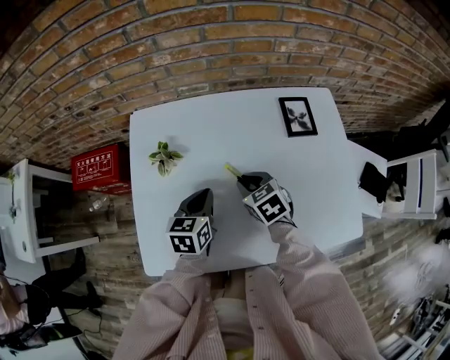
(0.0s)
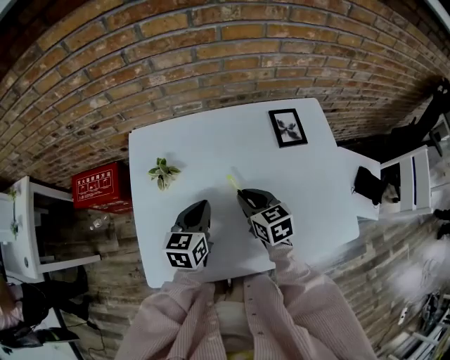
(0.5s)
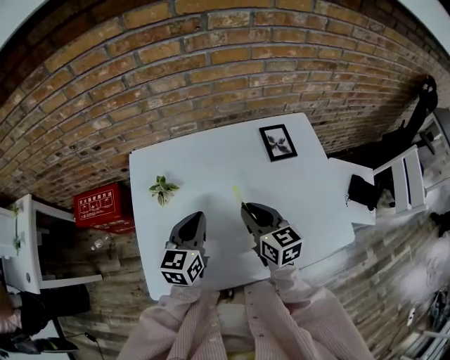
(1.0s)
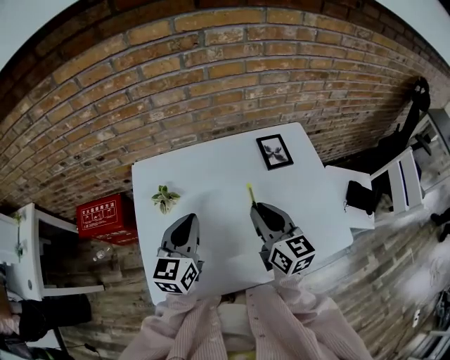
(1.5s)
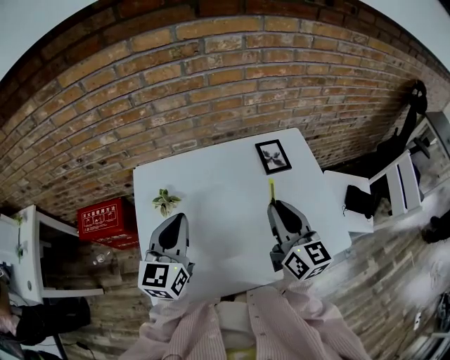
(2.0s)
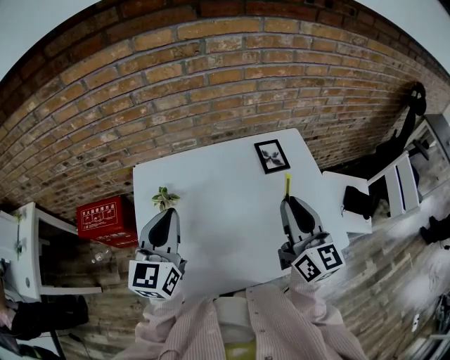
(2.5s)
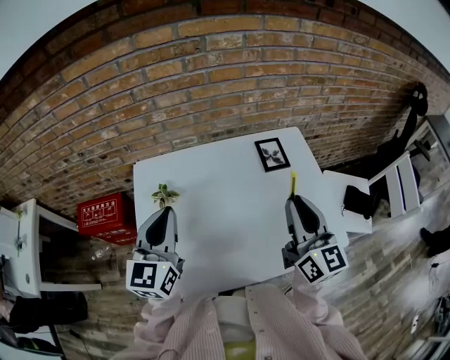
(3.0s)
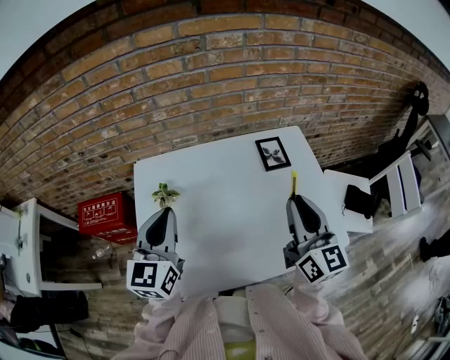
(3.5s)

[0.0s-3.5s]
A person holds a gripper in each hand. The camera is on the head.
0.0s to 2.0s: The right gripper shifts about 25 cm upward and to the right, and tilts its fingers some 50 degrees upward. The left gripper goes about 20 cm upward, and turns by approximately 30 degrees.
2.0s to 3.5s: The right gripper shifts by approximately 5 cm.

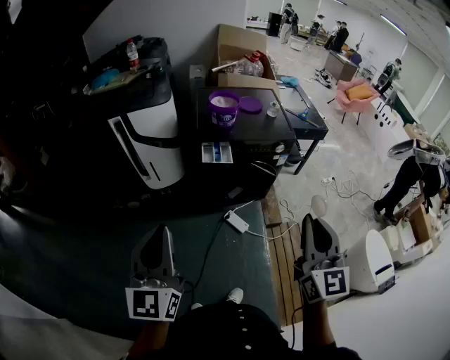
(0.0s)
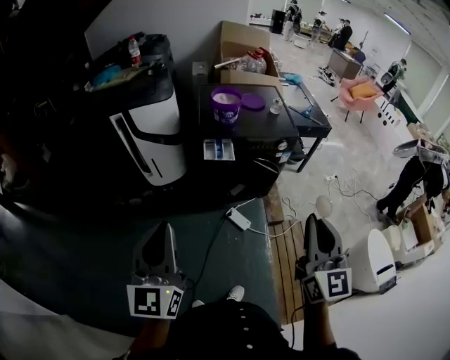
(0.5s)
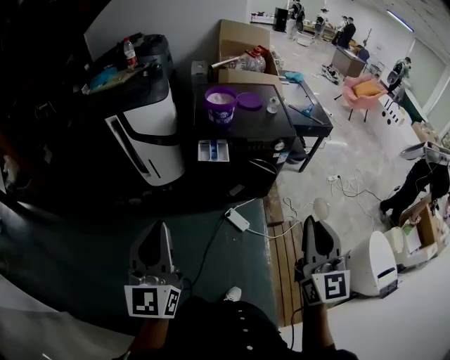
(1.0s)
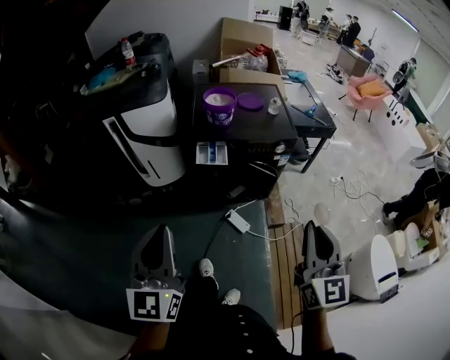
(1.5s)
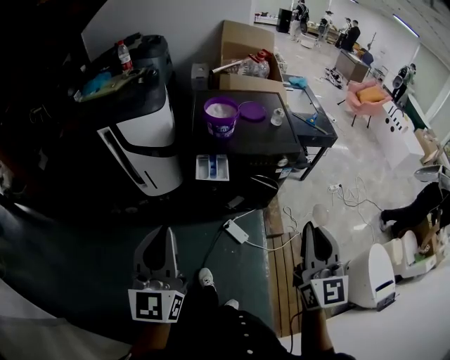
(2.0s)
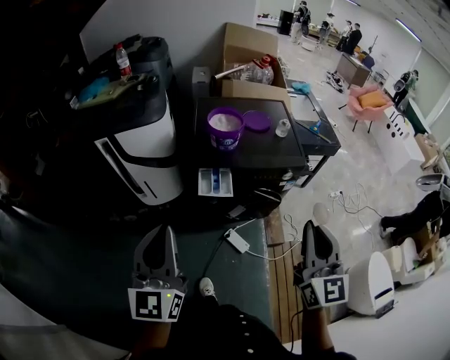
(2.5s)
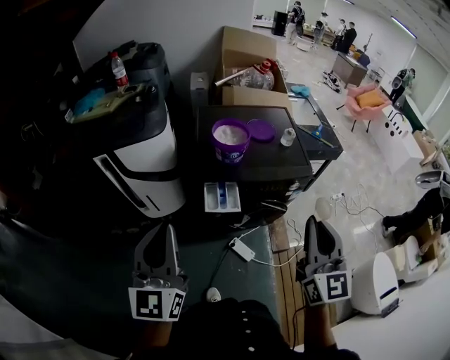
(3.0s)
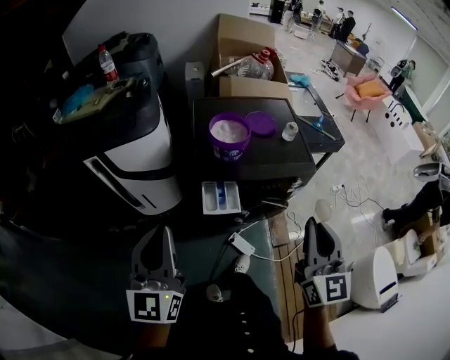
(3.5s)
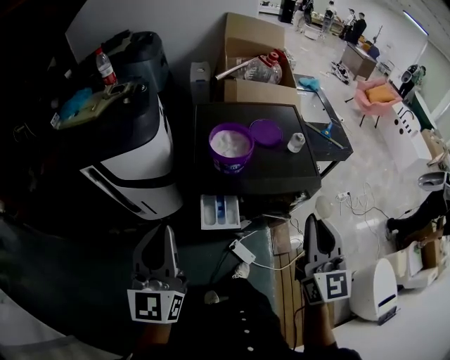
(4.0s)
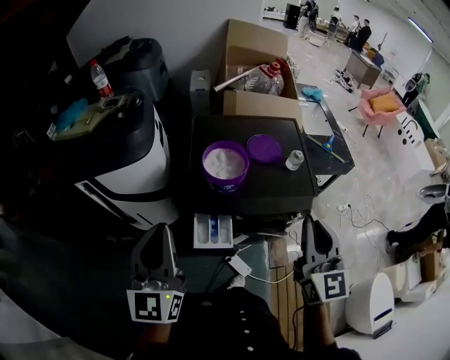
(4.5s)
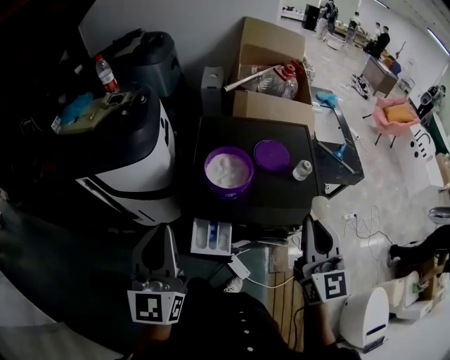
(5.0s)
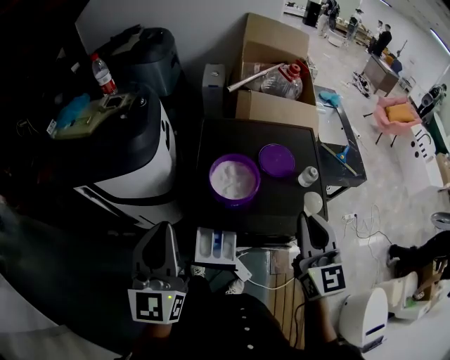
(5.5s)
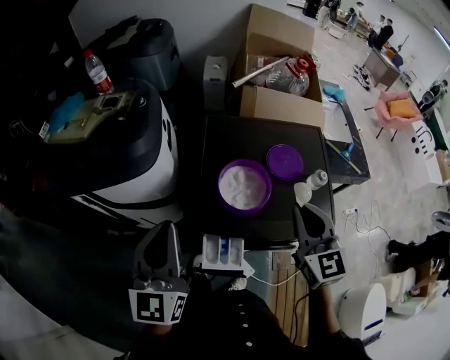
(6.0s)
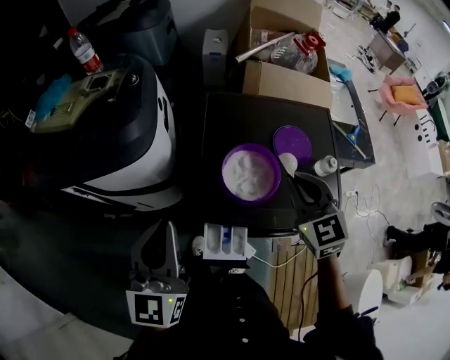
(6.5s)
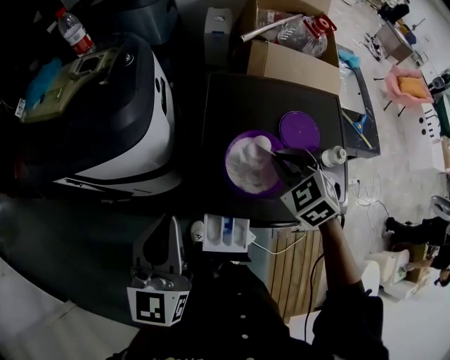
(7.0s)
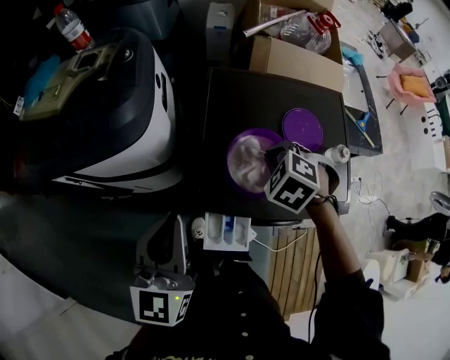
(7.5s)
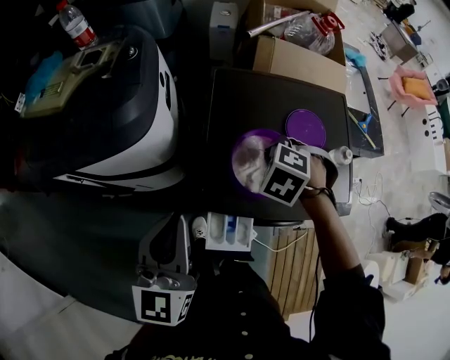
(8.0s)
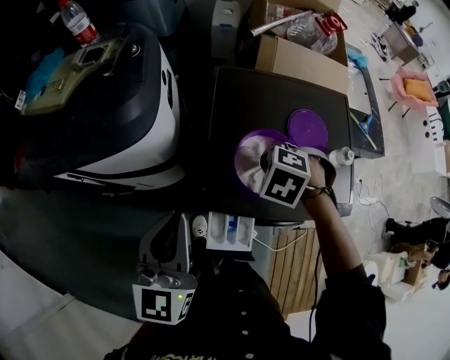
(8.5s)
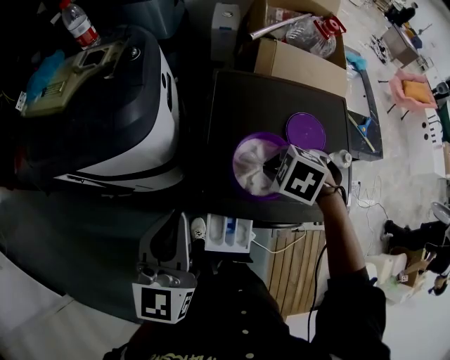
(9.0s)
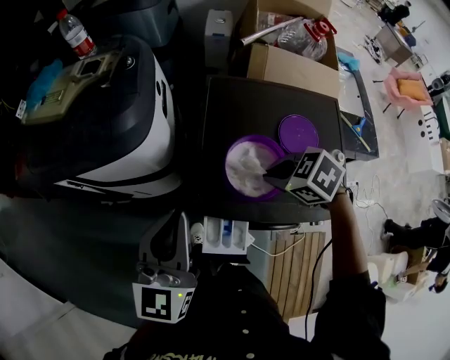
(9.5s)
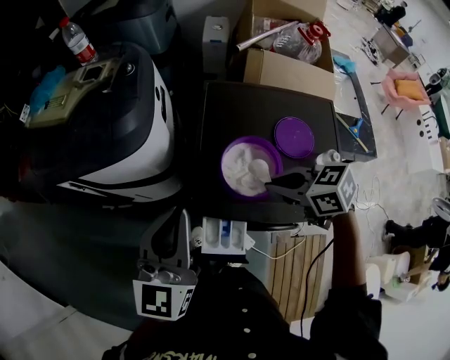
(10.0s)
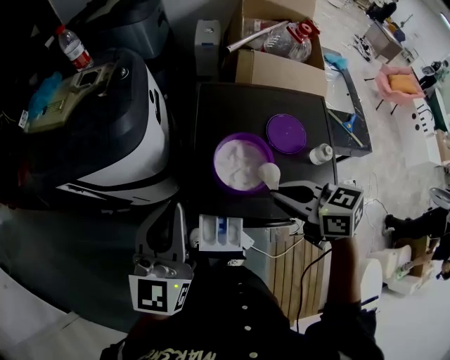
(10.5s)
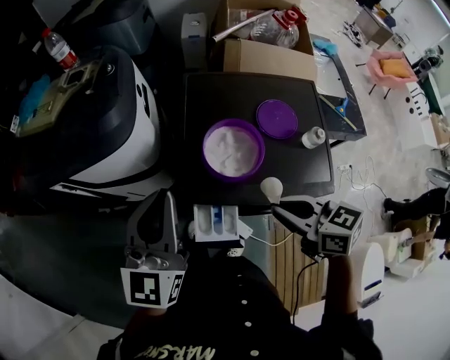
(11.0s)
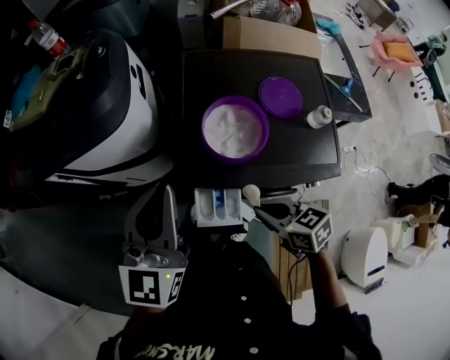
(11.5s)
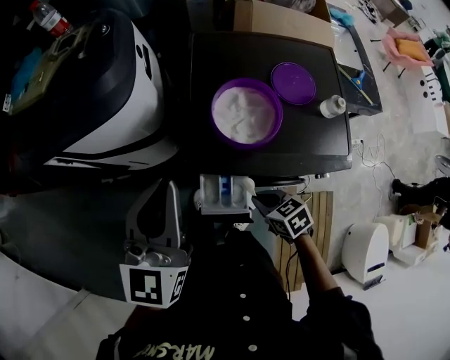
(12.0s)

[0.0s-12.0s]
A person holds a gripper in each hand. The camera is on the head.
0.0s to 2.0s: The right gripper shifts approximately 10 cm forward; the left gripper travels forward and to the right by about 15 cm.
2.0s to 4.0s: The grippers both shift forward by roughly 25 cm.
4.0s to 6.0s: Both grippers travel together forward, some 20 cm. The right gripper changes its angle by approximately 20 degrees.
6.0s to 8.0s: The right gripper goes about 25 cm downward, forward and to the left, and angles its fingers downward, by about 60 degrees. The left gripper travels downward by some 5 cm.
8.0s to 10.0s: The right gripper moves upward, about 5 cm, and points its fingers some 30 degrees further upward.
10.0s to 12.0s: The right gripper heads downward and backward, covering about 25 cm, and swivels roughly 20 degrees.

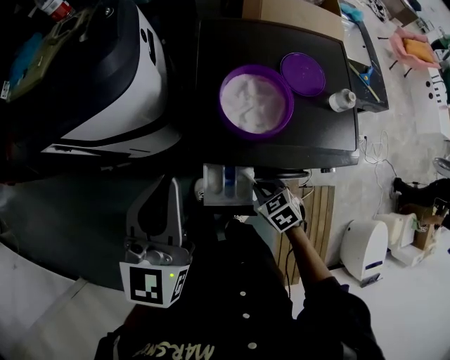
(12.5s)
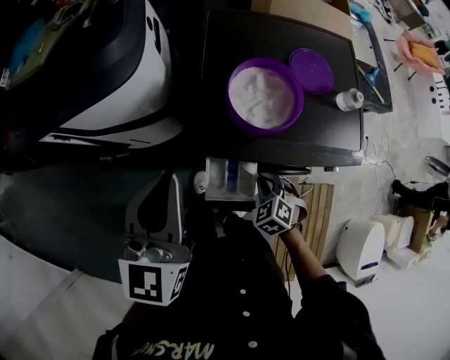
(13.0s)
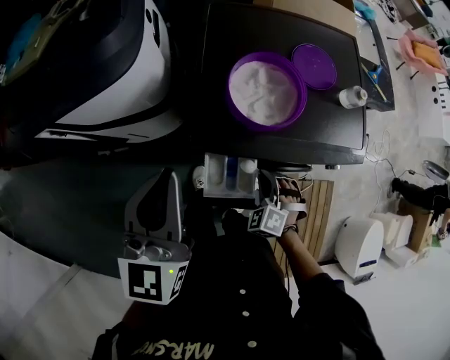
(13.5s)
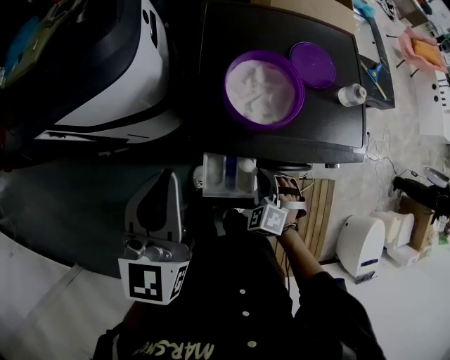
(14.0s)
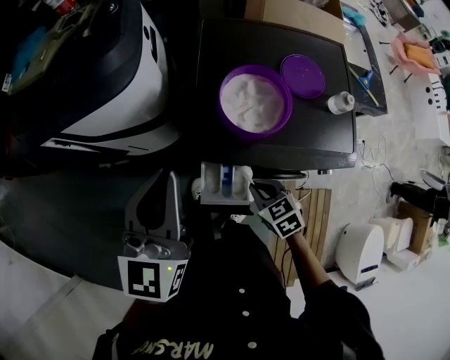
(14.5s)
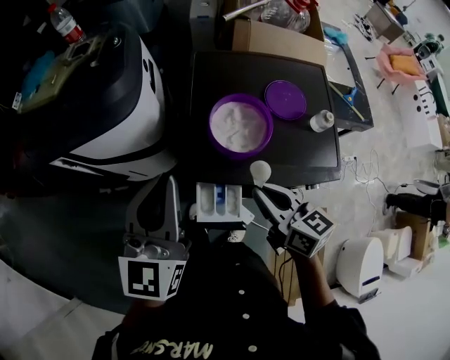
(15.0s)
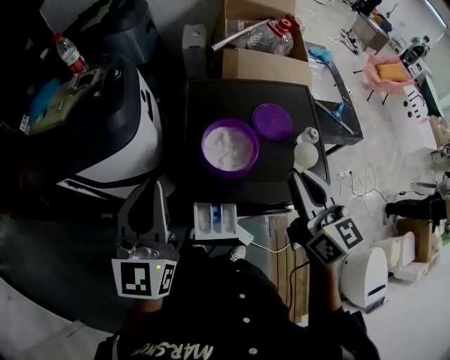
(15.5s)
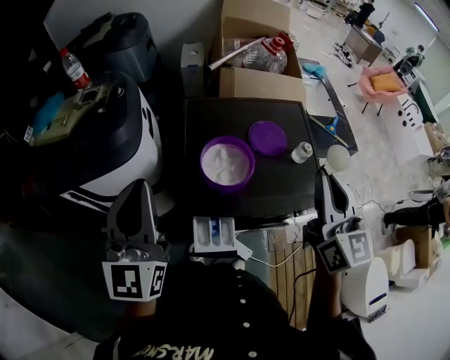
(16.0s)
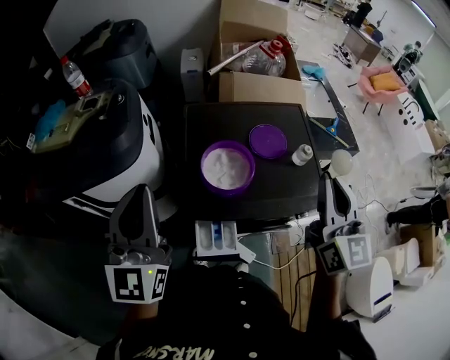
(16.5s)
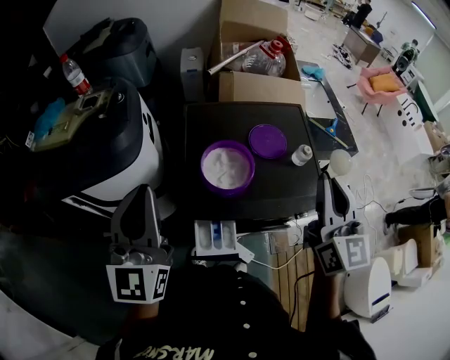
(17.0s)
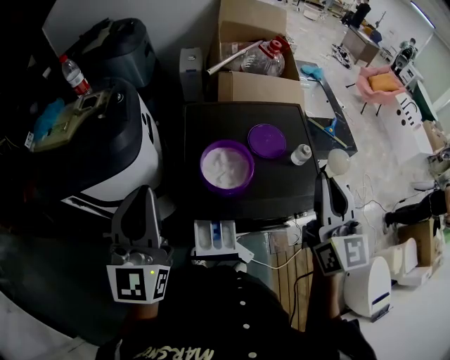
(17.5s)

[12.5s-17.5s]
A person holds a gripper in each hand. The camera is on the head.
12.5s to 15.0s: The right gripper heads upward, covering approximately 20 cm, and tilts its fingers approximately 40 degrees upward.
15.0s to 17.5s: The left gripper is displaced upward by roughly 5 cm. The right gripper moves upward and to the right, some 25 cm, and rotates approximately 50 degrees.

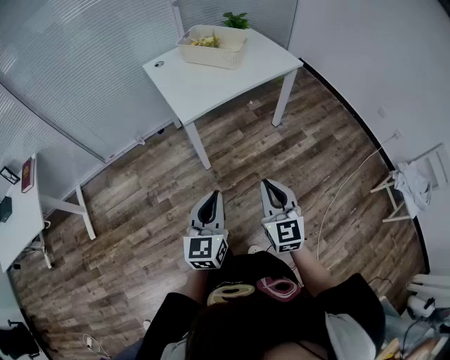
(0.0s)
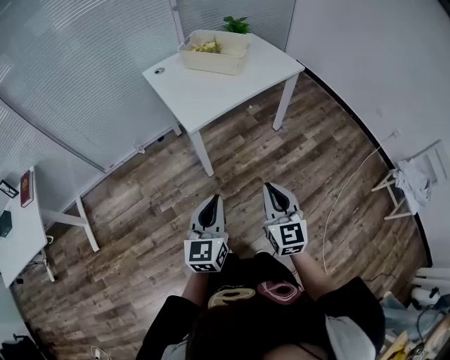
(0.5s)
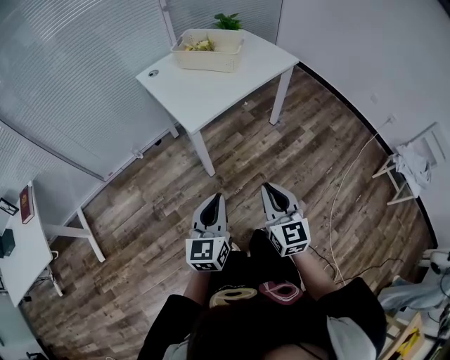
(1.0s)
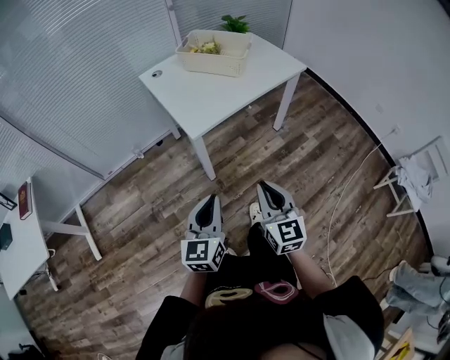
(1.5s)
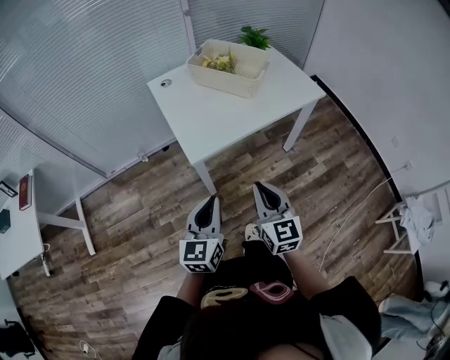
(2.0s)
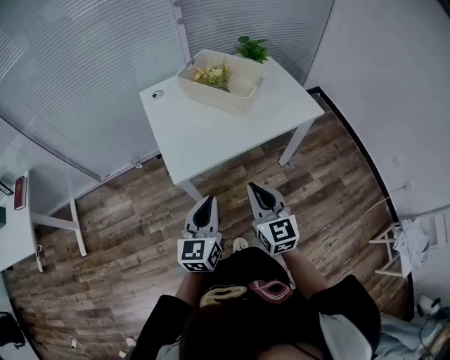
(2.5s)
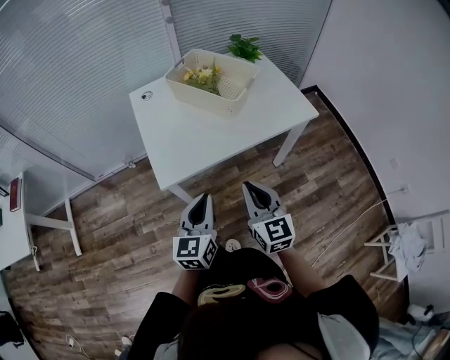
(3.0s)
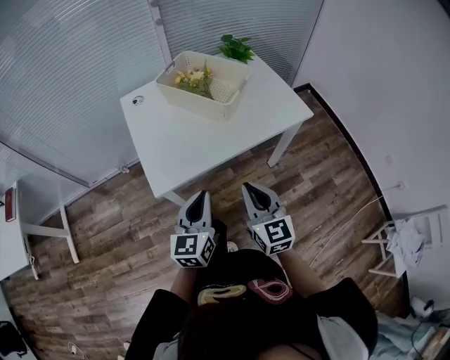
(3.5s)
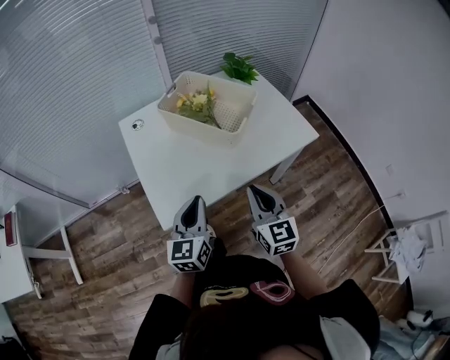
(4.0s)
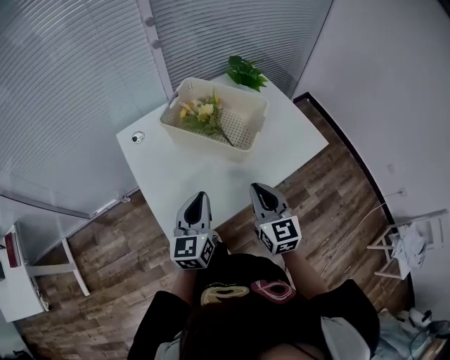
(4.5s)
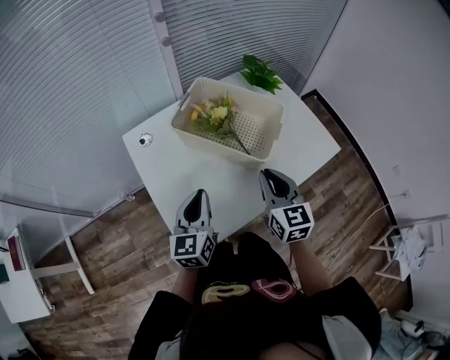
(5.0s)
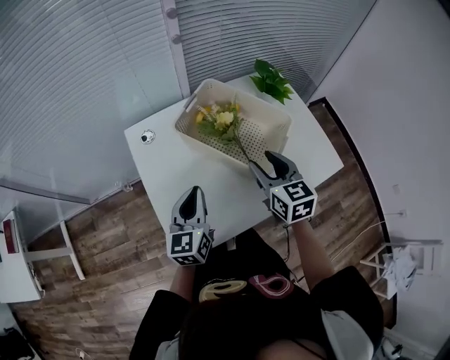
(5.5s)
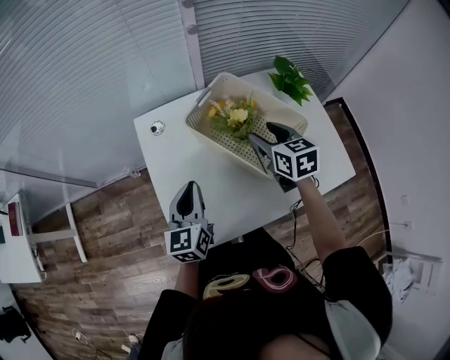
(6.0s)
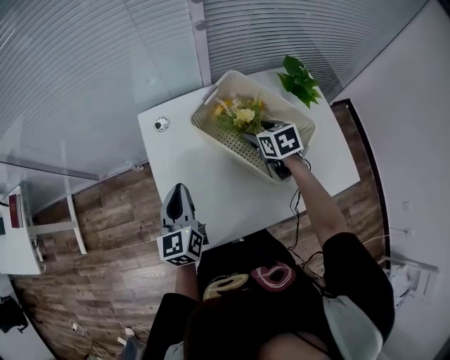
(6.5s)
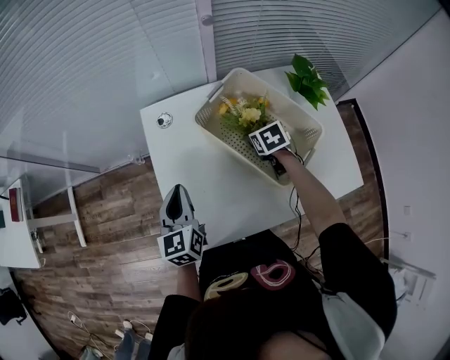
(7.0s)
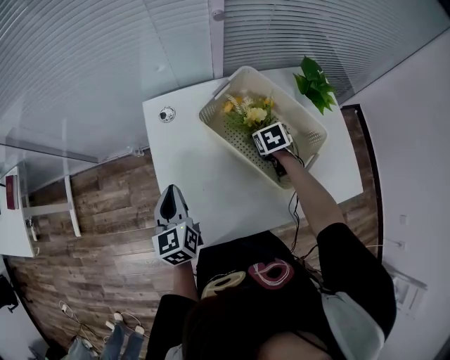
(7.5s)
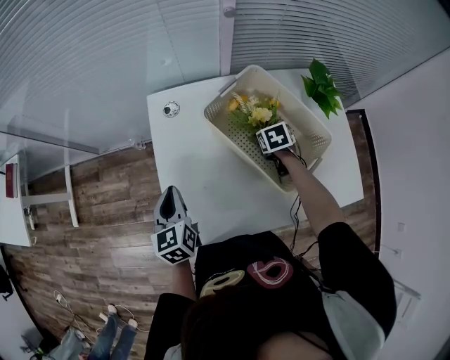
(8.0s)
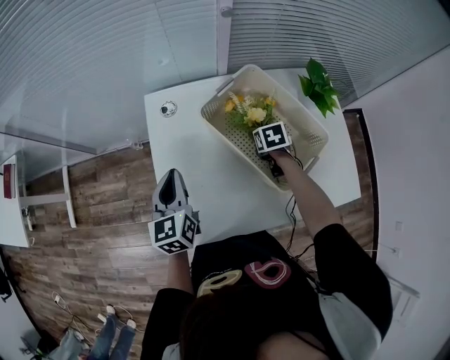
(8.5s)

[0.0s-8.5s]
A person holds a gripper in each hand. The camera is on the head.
0.0s to 2.0s: The two grippers go roughly 20 cm forward.
2.0s to 4.0s: The left gripper moves forward, about 25 cm. Meanwhile the right gripper is displaced forward and to the right by about 25 cm.
4.0s to 6.5s: The right gripper shifts by about 40 cm, tips its fingers downward by about 40 degrees, and opens; the left gripper moves roughly 25 cm, and rotates some 20 degrees.
6.5s to 8.5s: The right gripper shifts some 10 cm downward, and closes.
